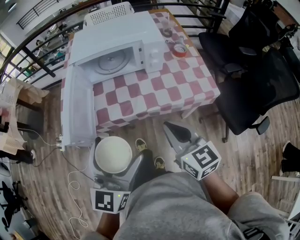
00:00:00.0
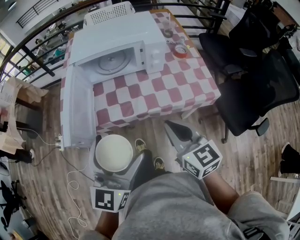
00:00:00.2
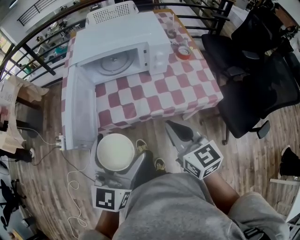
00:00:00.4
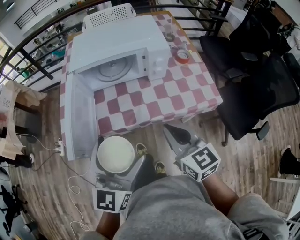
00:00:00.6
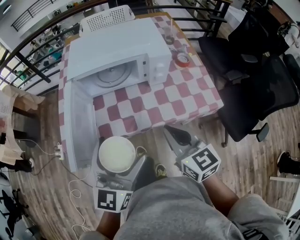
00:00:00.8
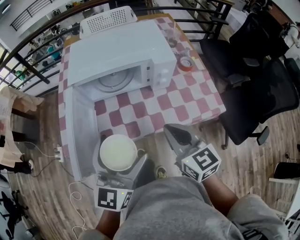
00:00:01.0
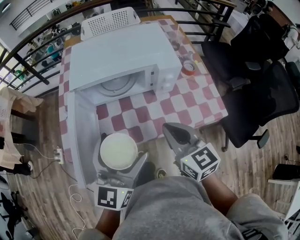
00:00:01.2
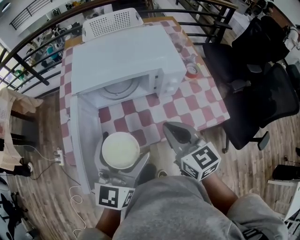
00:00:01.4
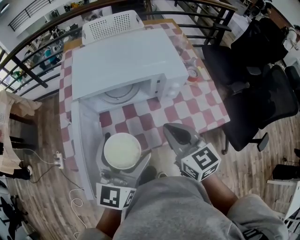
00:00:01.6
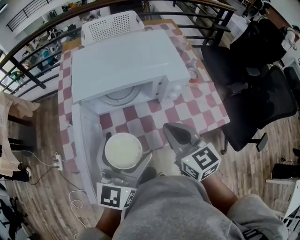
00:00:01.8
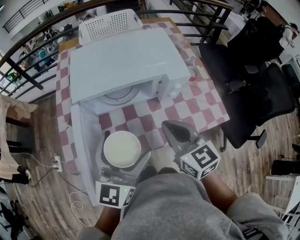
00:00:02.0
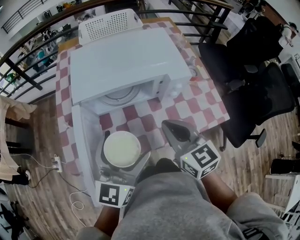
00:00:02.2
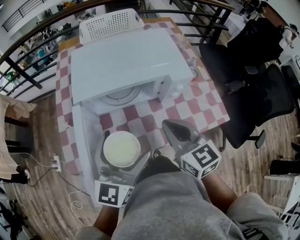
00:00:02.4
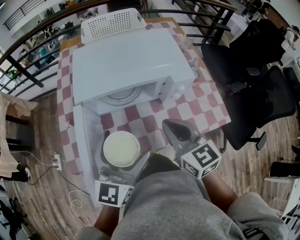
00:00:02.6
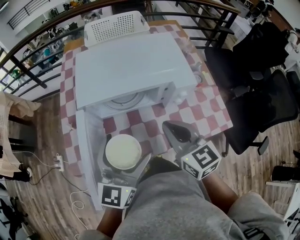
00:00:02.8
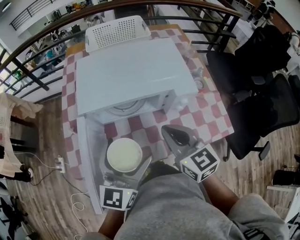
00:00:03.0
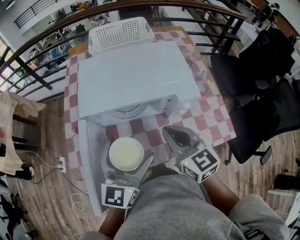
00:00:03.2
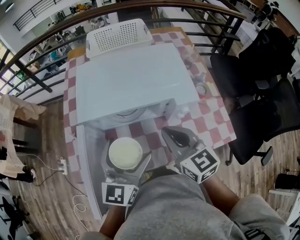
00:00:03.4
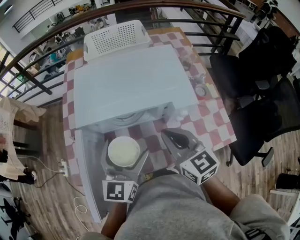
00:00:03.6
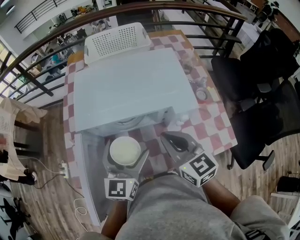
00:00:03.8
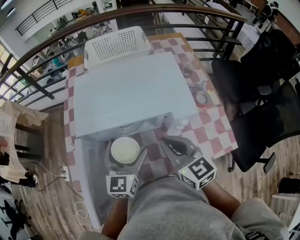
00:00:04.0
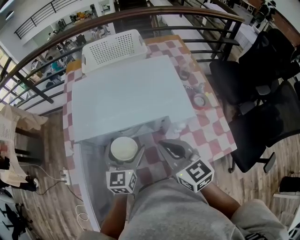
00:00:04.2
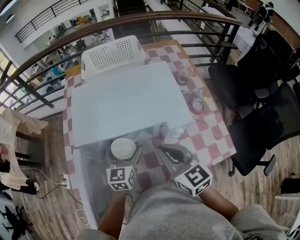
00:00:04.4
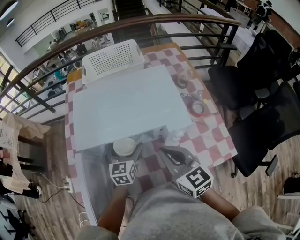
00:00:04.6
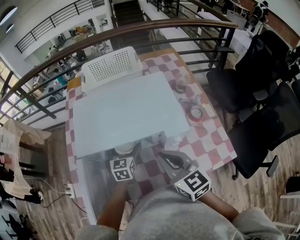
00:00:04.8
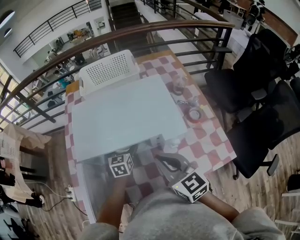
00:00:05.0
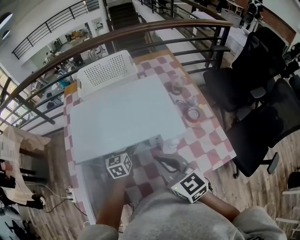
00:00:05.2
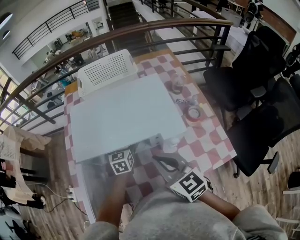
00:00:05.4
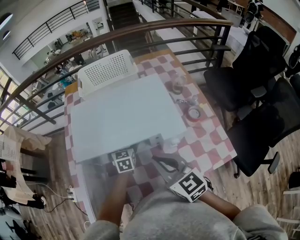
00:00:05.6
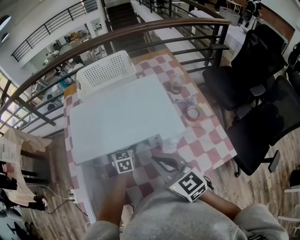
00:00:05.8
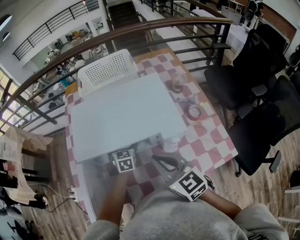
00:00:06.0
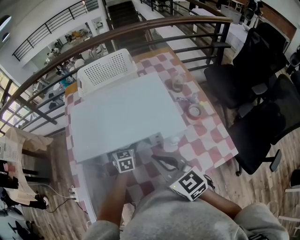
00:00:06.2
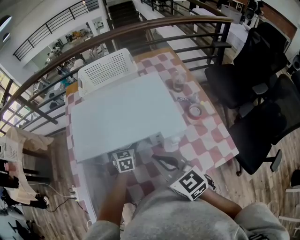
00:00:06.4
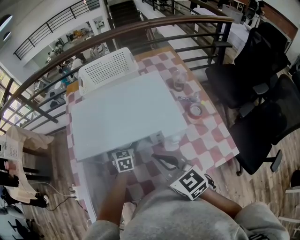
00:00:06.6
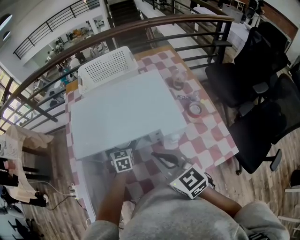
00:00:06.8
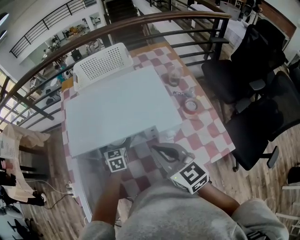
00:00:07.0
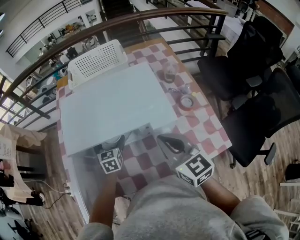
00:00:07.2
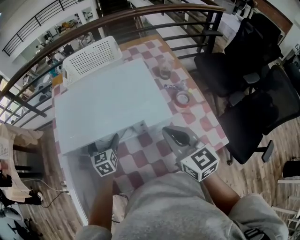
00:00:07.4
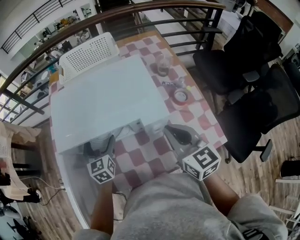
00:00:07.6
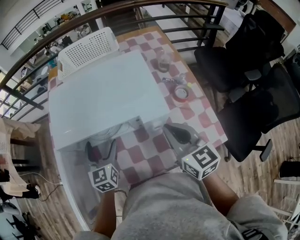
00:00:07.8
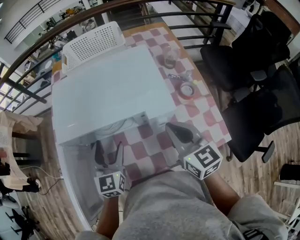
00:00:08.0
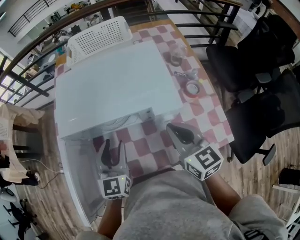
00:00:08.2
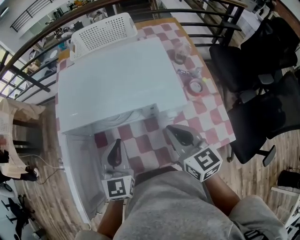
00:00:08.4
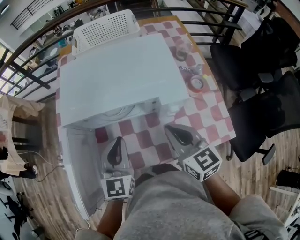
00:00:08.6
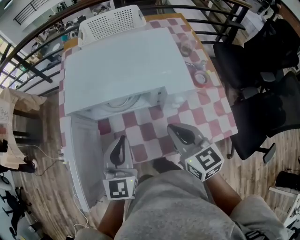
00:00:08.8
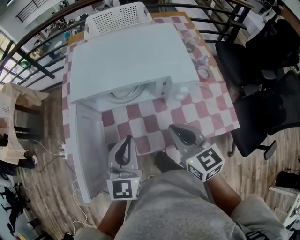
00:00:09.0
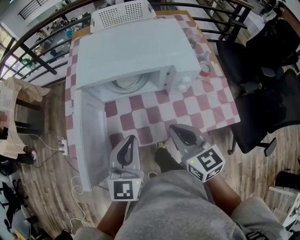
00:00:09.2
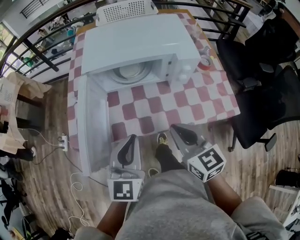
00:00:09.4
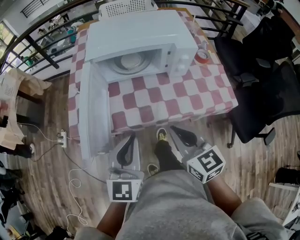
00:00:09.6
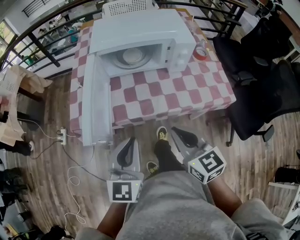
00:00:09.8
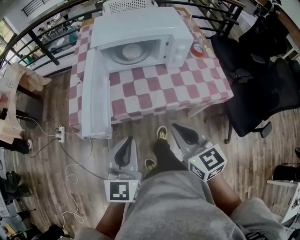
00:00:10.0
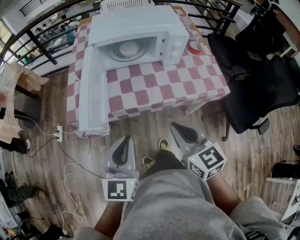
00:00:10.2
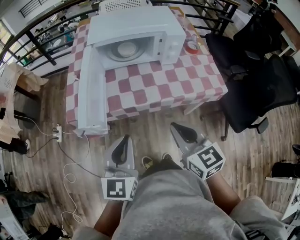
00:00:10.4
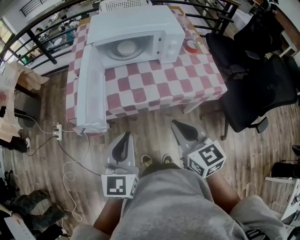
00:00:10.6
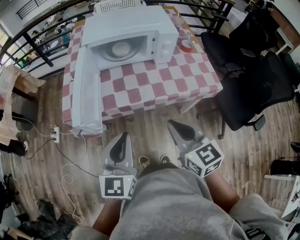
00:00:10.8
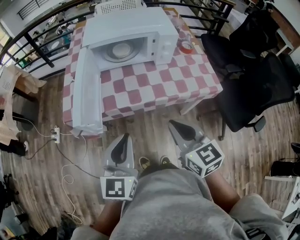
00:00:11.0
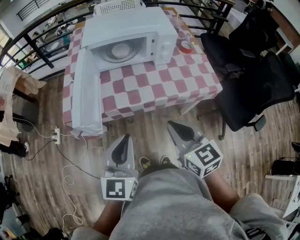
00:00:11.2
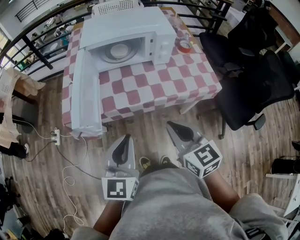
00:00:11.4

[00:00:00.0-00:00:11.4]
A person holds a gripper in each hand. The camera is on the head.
00:00:00.0 to 00:00:01.4: Both grippers move forward, about 20 cm.
00:00:01.4 to 00:00:02.8: Both grippers move forward, about 5 cm.
00:00:02.8 to 00:00:04.2: The right gripper is displaced forward by approximately 5 cm. The left gripper heads forward and downward, covering about 15 cm.
00:00:04.2 to 00:00:05.6: The left gripper goes approximately 15 cm forward and downward, and changes its angle by about 20 degrees.
00:00:05.6 to 00:00:07.2: The right gripper shifts approximately 5 cm to the right.
00:00:07.2 to 00:00:08.6: The right gripper ends up approximately 5 cm from where it was. Meanwhile the left gripper goes about 20 cm backward and upward, changes its angle by about 20 degrees, and closes its fingers.
00:00:08.6 to 00:00:10.0: The left gripper goes some 30 cm backward. The right gripper is displaced backward and to the left by approximately 30 cm.
00:00:10.0 to 00:00:11.4: The grippers move only a little.

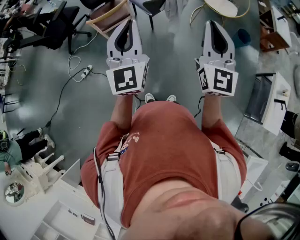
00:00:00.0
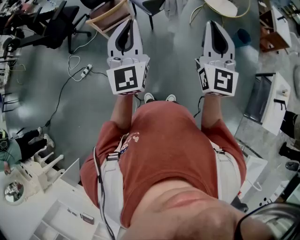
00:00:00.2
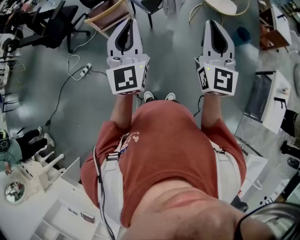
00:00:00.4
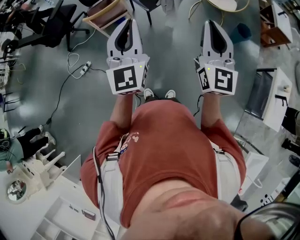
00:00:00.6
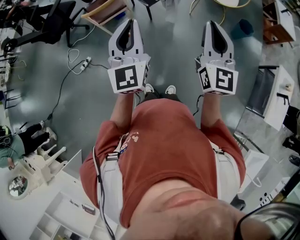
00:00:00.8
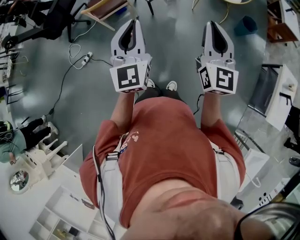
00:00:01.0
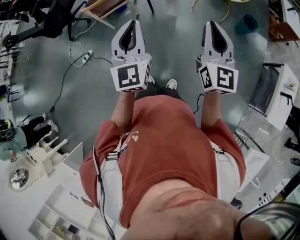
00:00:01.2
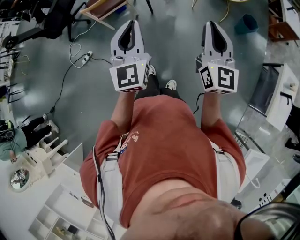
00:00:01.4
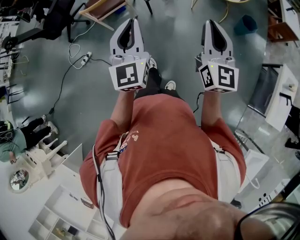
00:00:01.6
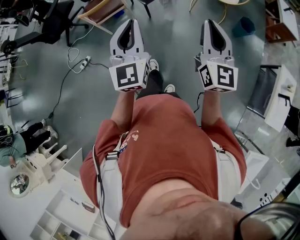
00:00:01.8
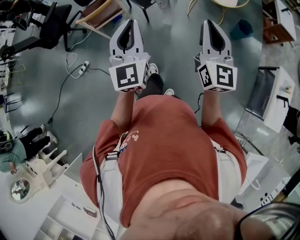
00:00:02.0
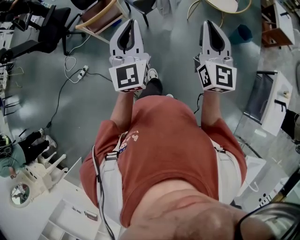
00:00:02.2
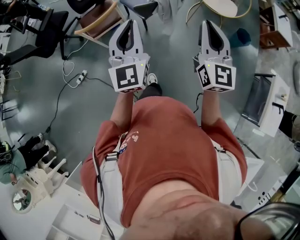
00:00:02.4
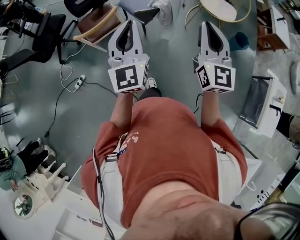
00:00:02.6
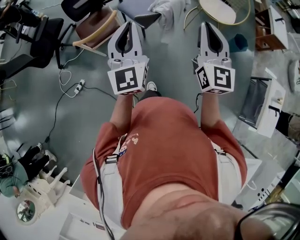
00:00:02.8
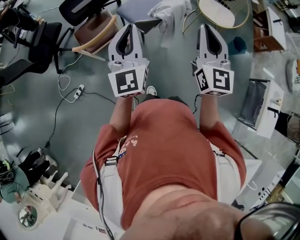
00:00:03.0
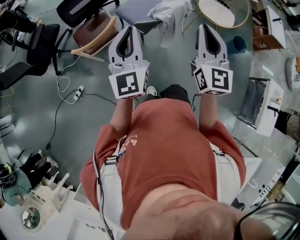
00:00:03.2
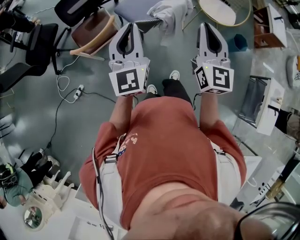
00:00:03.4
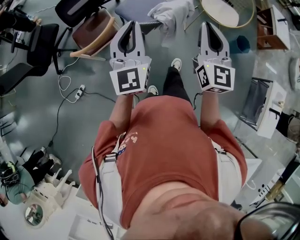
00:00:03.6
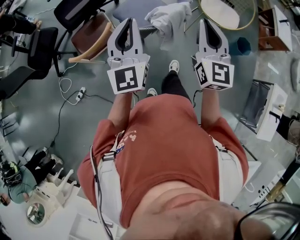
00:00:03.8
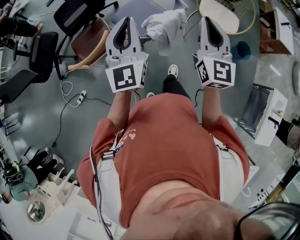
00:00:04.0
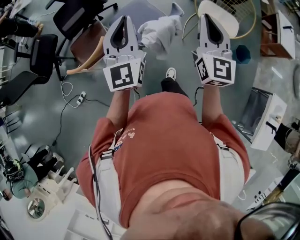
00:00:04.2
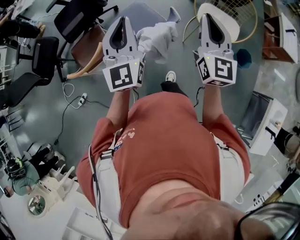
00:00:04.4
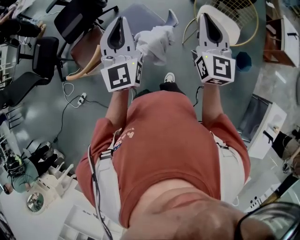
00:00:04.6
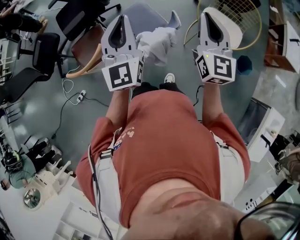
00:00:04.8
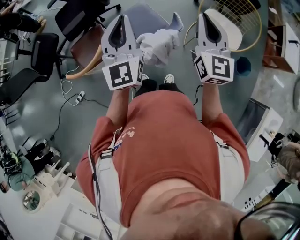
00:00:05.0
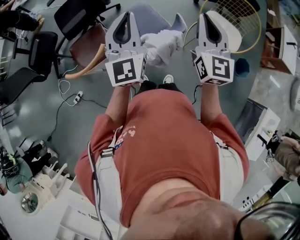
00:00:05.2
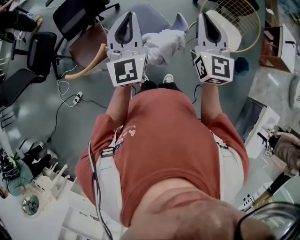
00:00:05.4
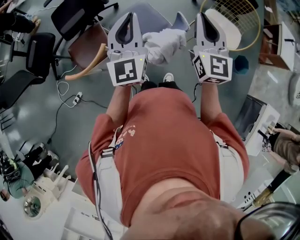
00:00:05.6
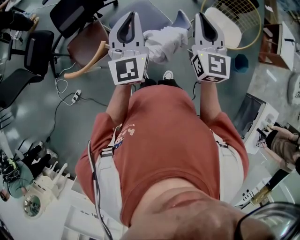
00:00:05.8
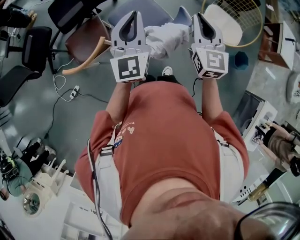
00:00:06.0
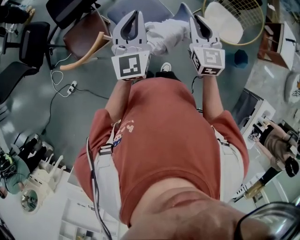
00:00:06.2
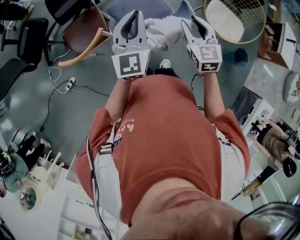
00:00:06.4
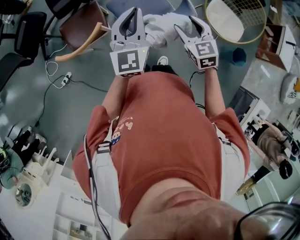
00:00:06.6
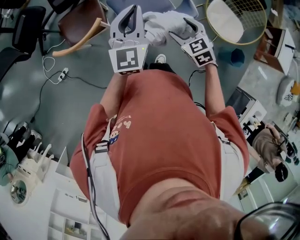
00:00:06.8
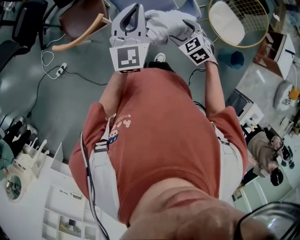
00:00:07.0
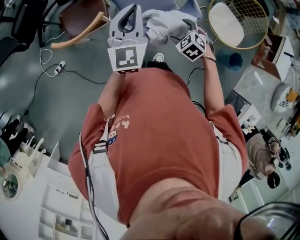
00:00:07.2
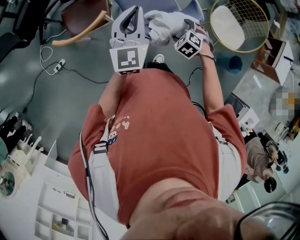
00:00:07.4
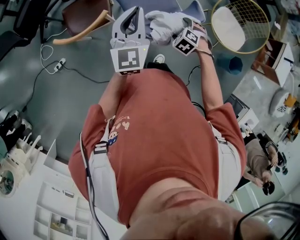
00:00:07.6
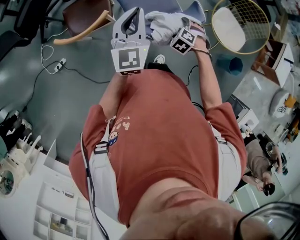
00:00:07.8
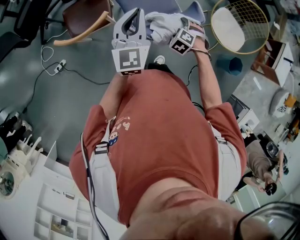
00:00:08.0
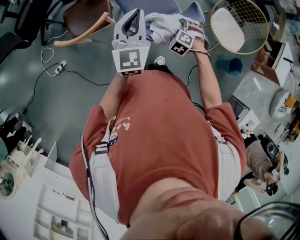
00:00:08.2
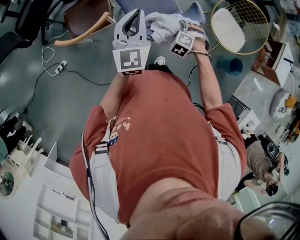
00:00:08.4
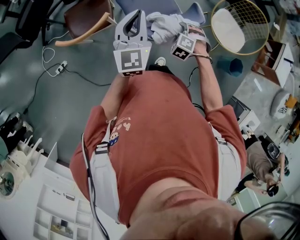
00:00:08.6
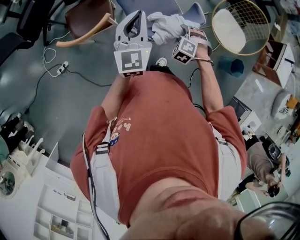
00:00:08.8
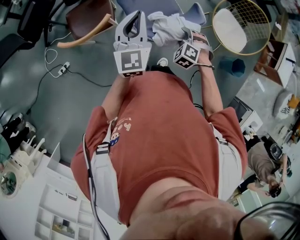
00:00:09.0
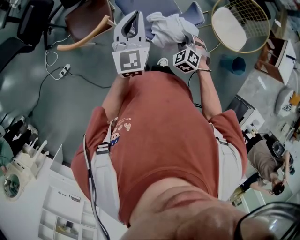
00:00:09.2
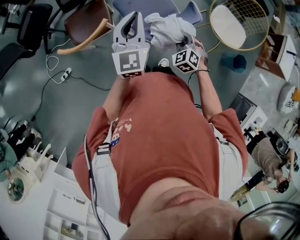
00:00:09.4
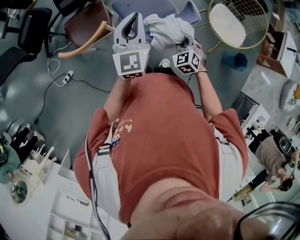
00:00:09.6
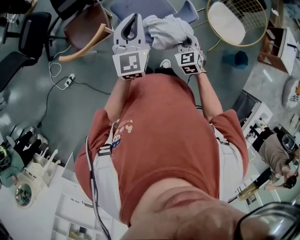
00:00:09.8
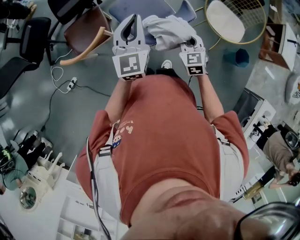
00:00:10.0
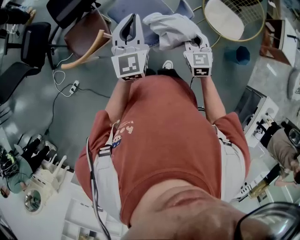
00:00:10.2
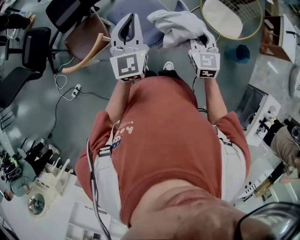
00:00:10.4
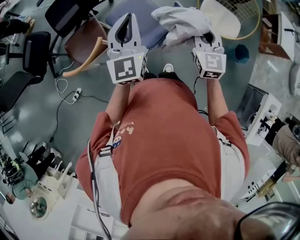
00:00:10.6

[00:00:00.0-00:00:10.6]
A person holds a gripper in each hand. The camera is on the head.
00:00:00.0 to 00:00:01.6: The grippers both shift to the right and downward by about 10 cm.
00:00:01.6 to 00:00:03.0: Both grippers travel together forward and to the left, about 30 cm.
00:00:03.0 to 00:00:04.6: The two grippers go approximately 35 cm forward and to the right.
00:00:04.6 to 00:00:06.0: The right gripper heads to the left, downward and forward, covering roughly 15 cm; the left gripper is displaced to the left and downward by approximately 10 cm.
00:00:06.0 to 00:00:07.6: The right gripper travels downward by some 30 cm, tilts its fingers approximately 60 degrees downward, and opens its fingers. Meanwhile the left gripper goes some 10 cm downward and to the left.
00:00:07.6 to 00:00:09.0: The right gripper closes its fingers.
00:00:09.0 to 00:00:10.6: The right gripper goes approximately 25 cm upward and to the right, and tips its fingers upward by roughly 40 degrees. Meanwhile the left gripper shifts some 10 cm upward and to the right.

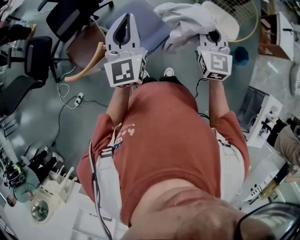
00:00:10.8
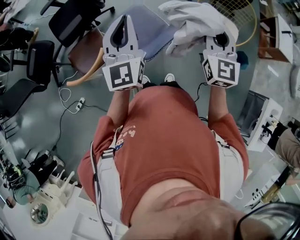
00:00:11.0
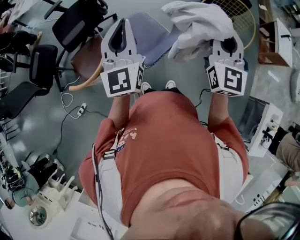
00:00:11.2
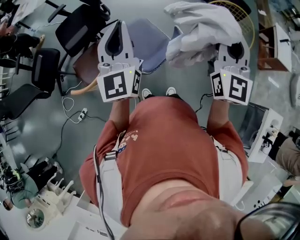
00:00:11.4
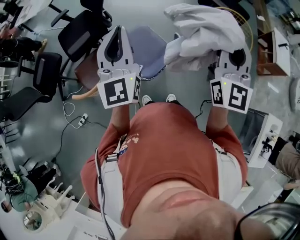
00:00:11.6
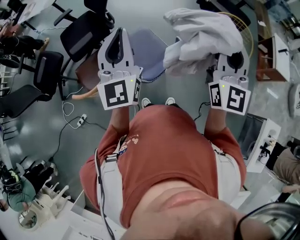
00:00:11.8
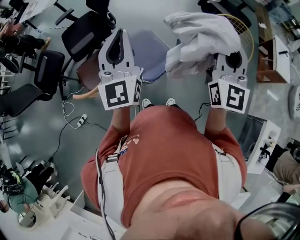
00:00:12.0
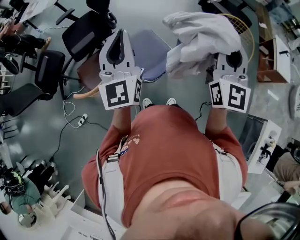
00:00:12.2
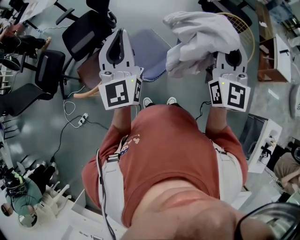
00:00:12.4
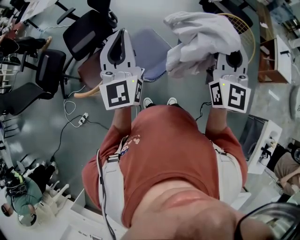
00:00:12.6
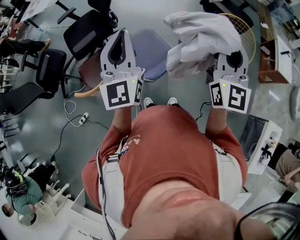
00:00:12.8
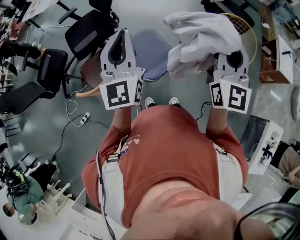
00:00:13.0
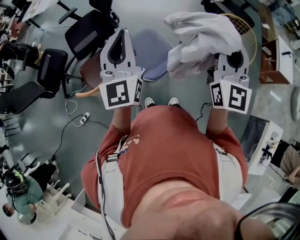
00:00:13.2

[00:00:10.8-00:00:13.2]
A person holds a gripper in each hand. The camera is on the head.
00:00:10.8 to 00:00:12.0: The left gripper heads upward, covering roughly 10 cm. Meanwhile the right gripper moves upward, approximately 20 cm, and rotates approximately 20 degrees.
00:00:12.0 to 00:00:13.2: The two grippers keep their place.
